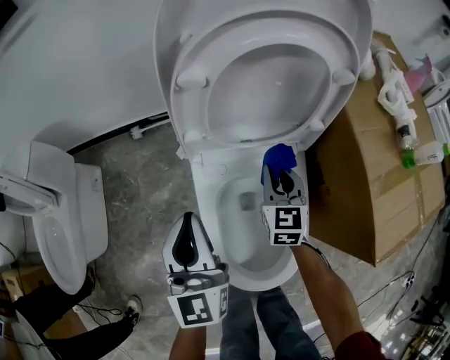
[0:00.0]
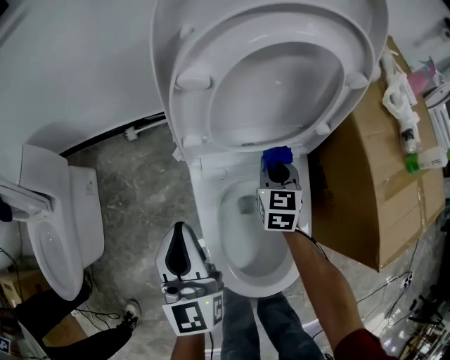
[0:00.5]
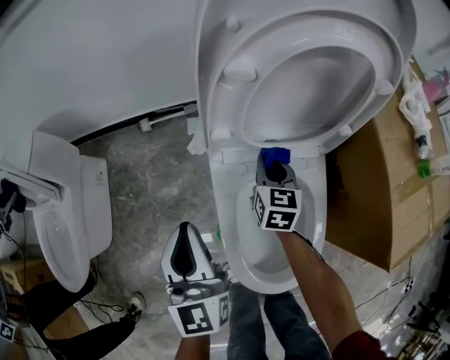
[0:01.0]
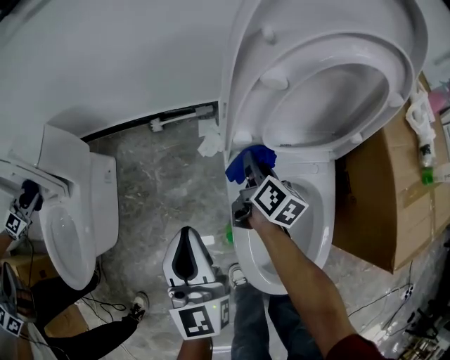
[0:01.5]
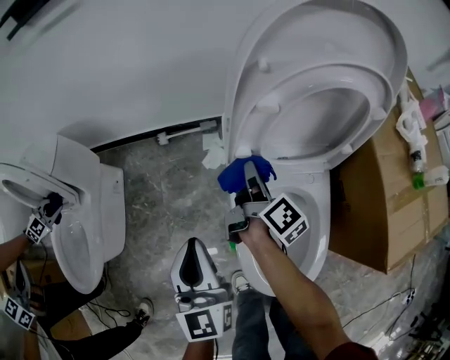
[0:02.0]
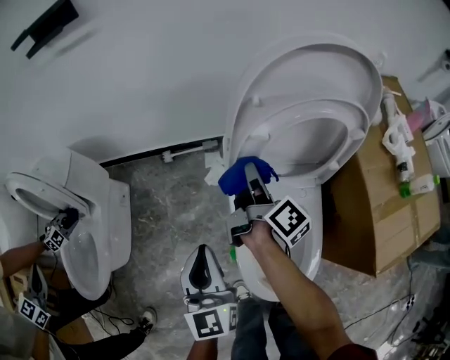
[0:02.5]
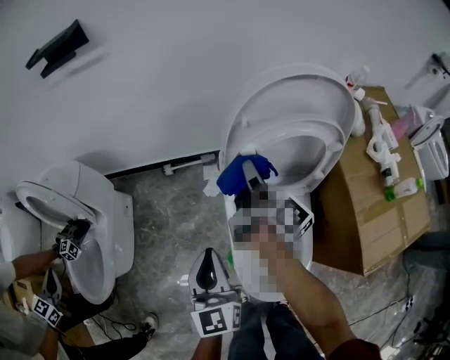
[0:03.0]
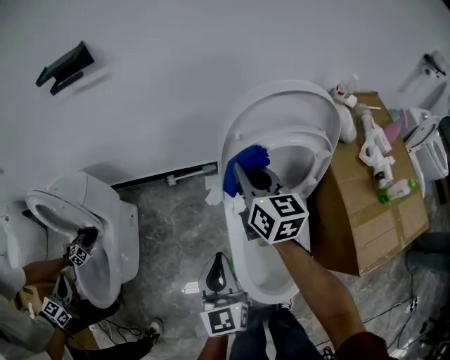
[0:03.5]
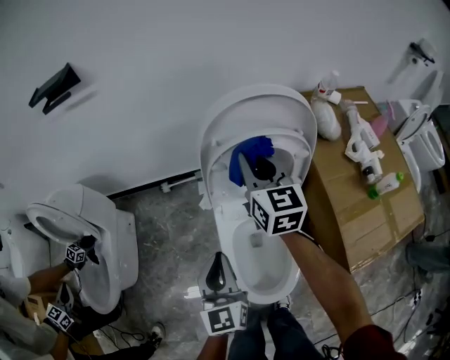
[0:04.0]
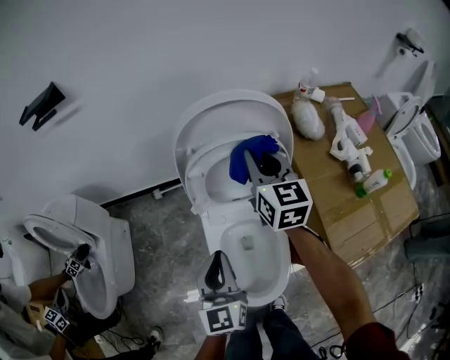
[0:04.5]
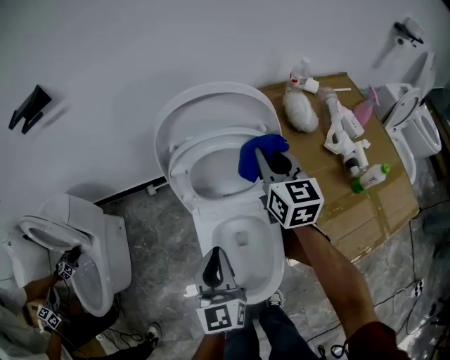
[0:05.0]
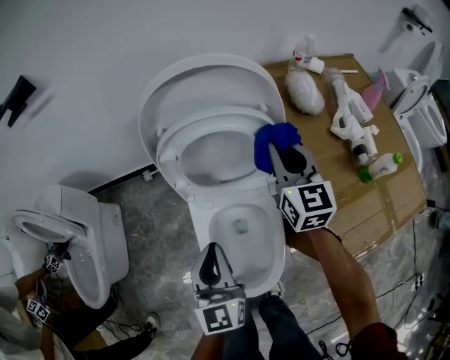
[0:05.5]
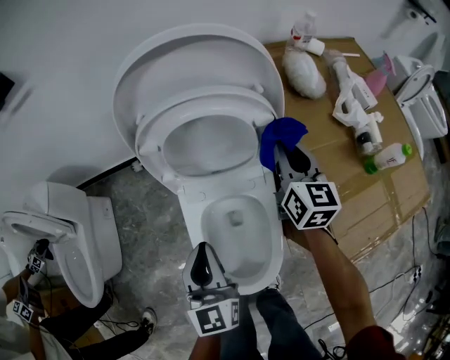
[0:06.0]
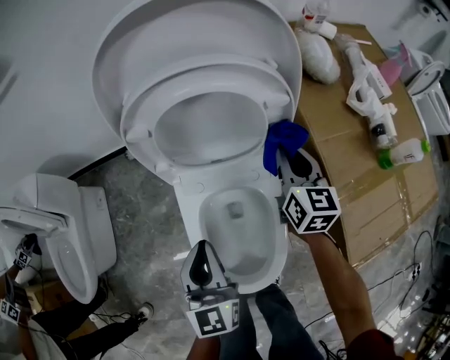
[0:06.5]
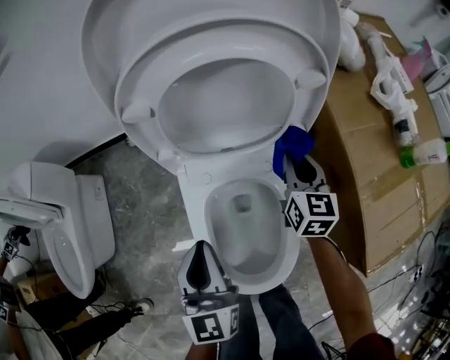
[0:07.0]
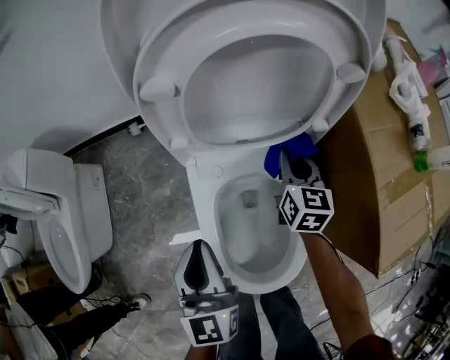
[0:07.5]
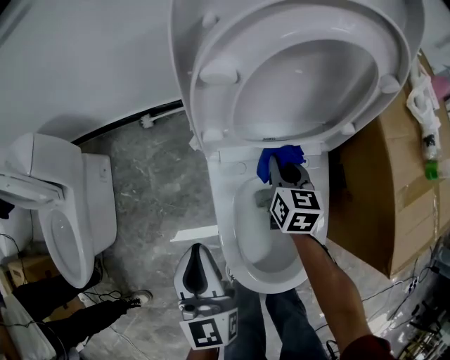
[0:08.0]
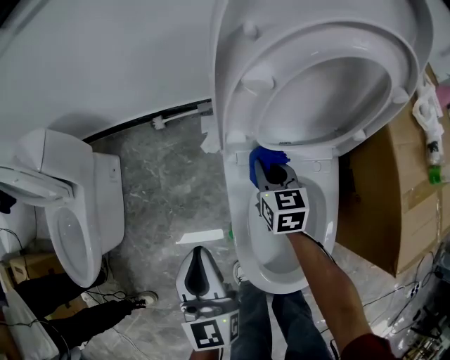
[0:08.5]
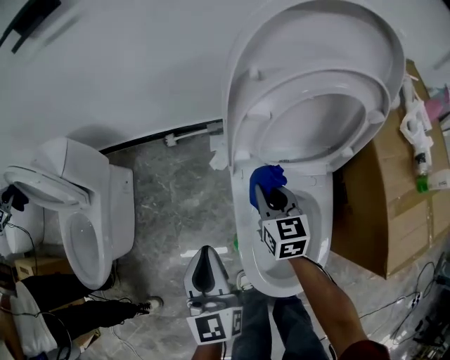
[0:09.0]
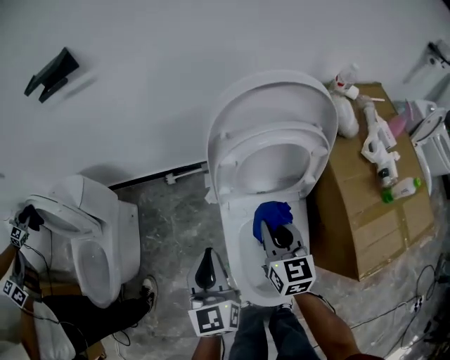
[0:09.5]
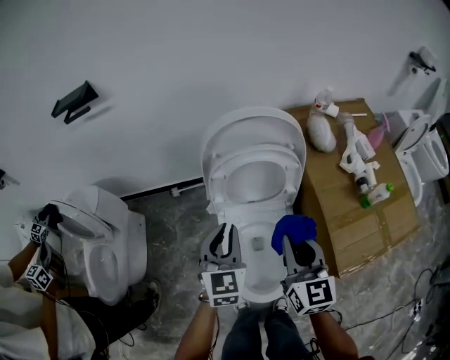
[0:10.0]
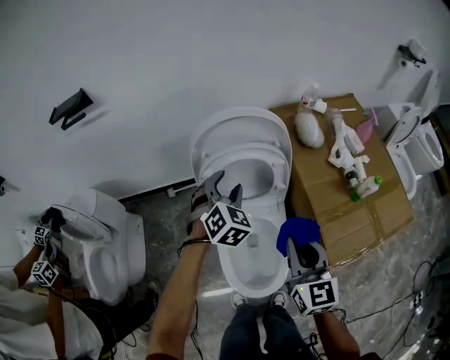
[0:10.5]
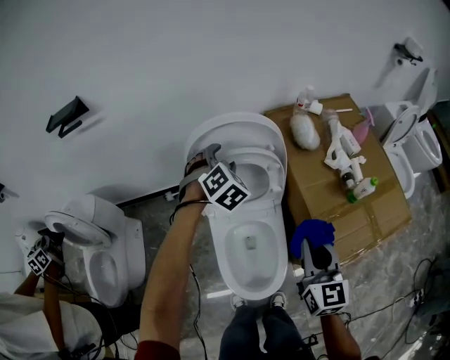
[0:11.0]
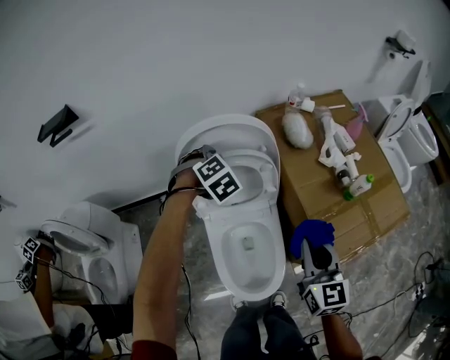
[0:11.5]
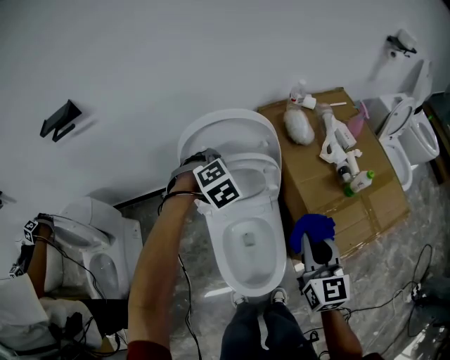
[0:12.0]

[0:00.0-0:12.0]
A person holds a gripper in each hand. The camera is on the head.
0:00.0 to 0:02.0: Both grippers move to the left, about 15 cm. The right gripper rolls clockwise, seen from behind, by approximately 80 degrees.
0:02.0 to 0:04.0: The right gripper goes some 30 cm upward, and twists roughly 70 degrees counterclockwise, seen from behind. The left gripper moves upward and to the right, approximately 20 cm.
0:04.0 to 0:06.0: The left gripper is displaced to the right and downward by about 15 cm. Meanwhile the right gripper travels to the right and downward by approximately 30 cm.
0:06.0 to 0:08.0: The left gripper is displaced to the left and downward by some 20 cm, while the right gripper shifts about 30 cm downward and to the left.
0:08.0 to 0:10.0: The left gripper travels upward and to the right by about 25 cm, and changes its angle by about 30 degrees. Meanwhile the right gripper travels upward and backward by some 50 cm, and turns by about 20 degrees.
0:10.0 to 0:12.0: The left gripper shifts some 20 cm forward and to the right, rolls clockwise, seen from behind, by roughly 50 degrees, and opens, then closes once more; the right gripper heads to the right, covering approximately 10 cm.

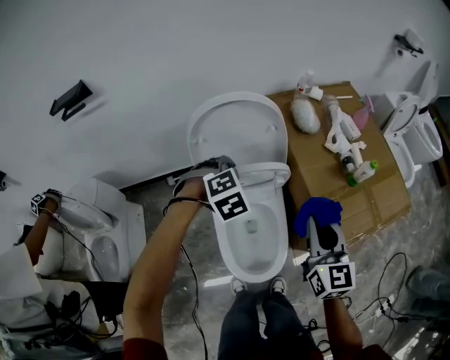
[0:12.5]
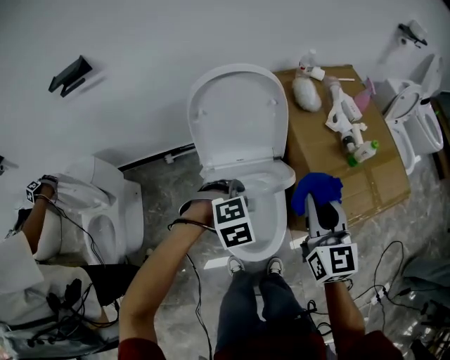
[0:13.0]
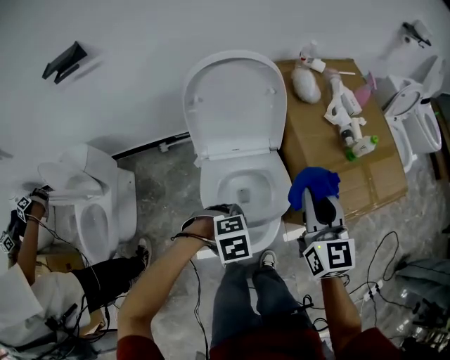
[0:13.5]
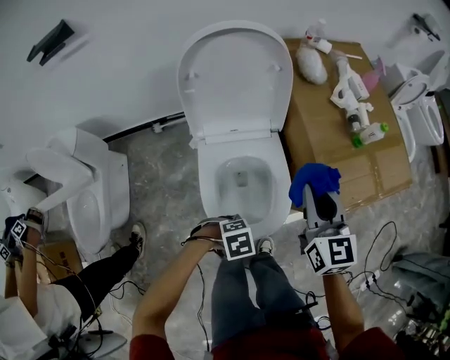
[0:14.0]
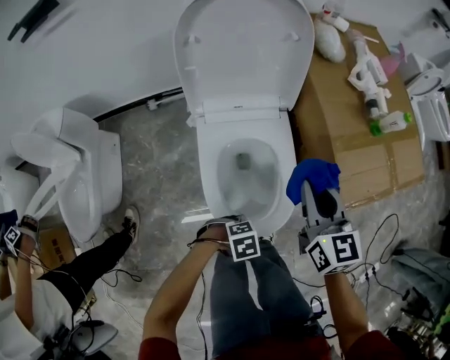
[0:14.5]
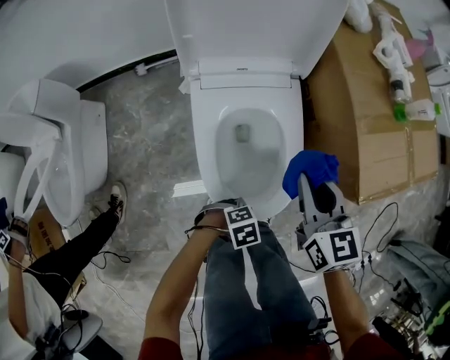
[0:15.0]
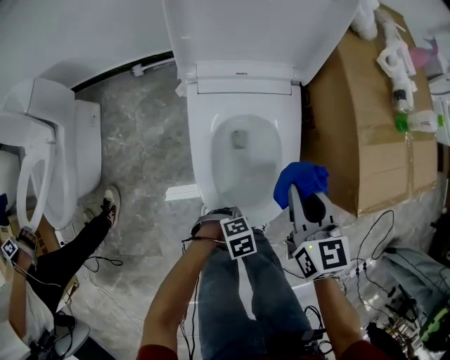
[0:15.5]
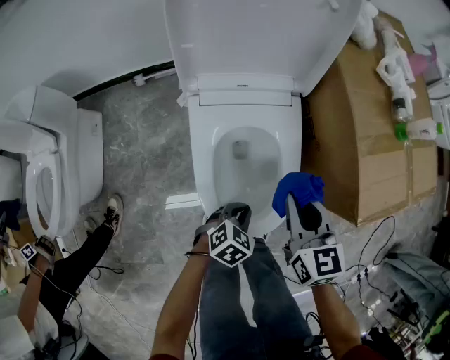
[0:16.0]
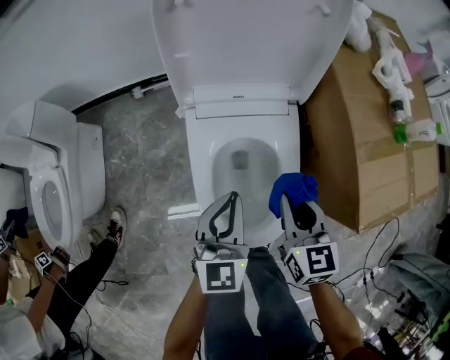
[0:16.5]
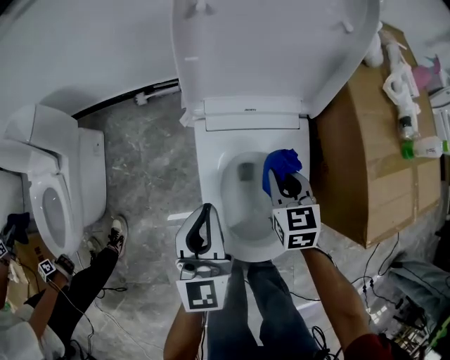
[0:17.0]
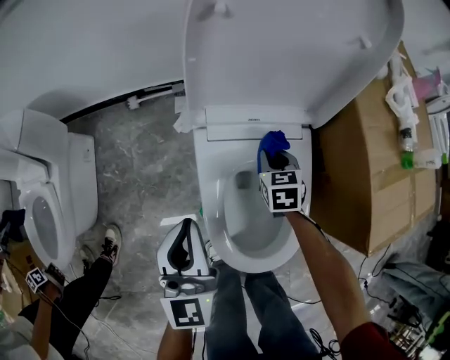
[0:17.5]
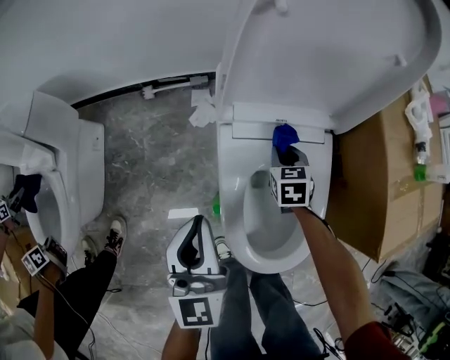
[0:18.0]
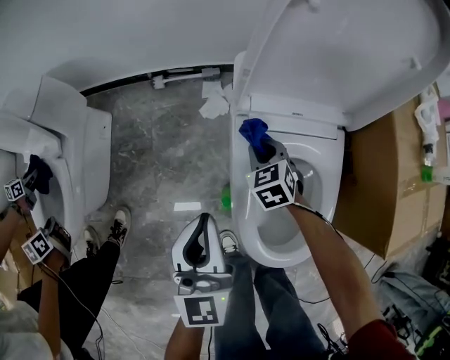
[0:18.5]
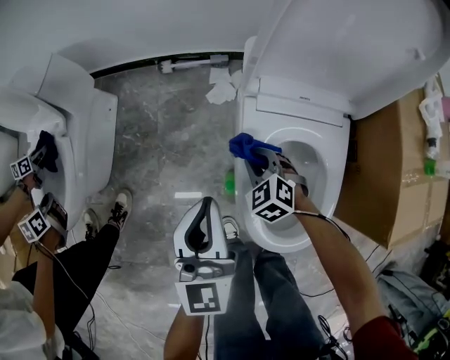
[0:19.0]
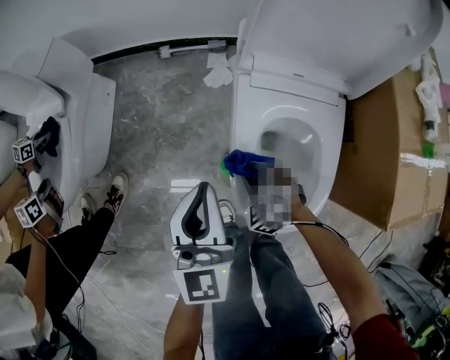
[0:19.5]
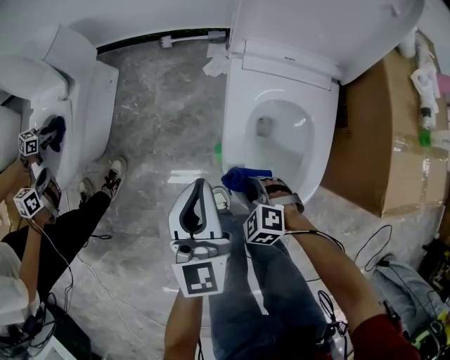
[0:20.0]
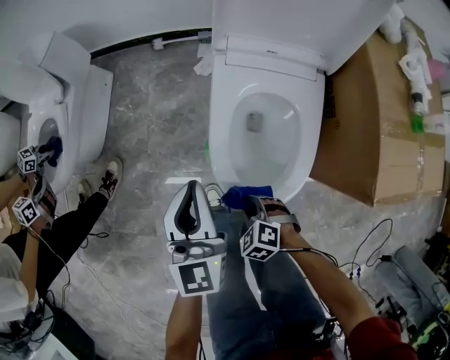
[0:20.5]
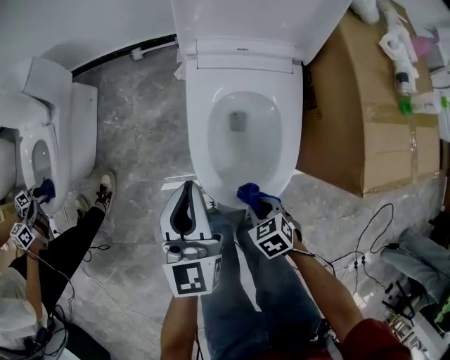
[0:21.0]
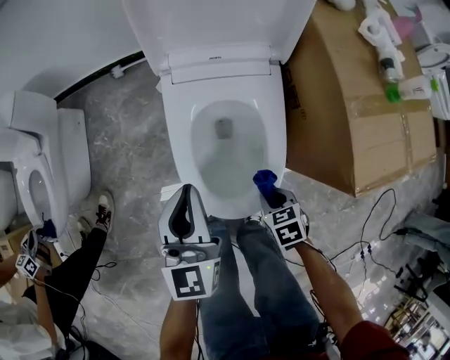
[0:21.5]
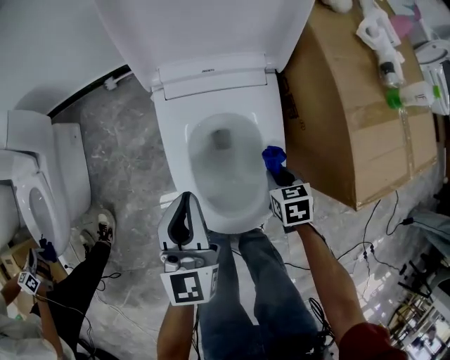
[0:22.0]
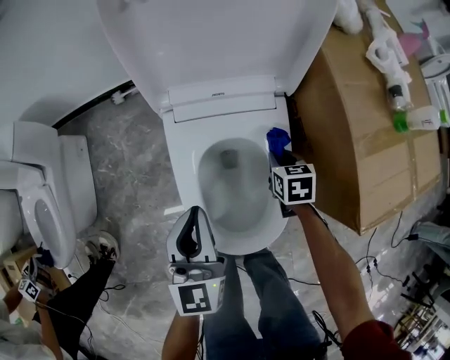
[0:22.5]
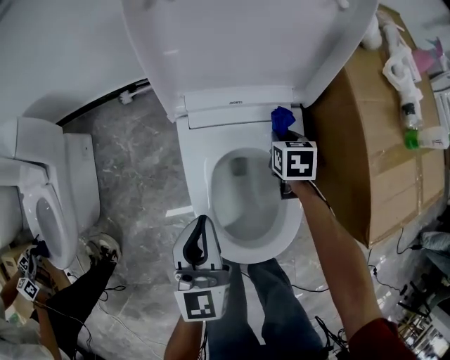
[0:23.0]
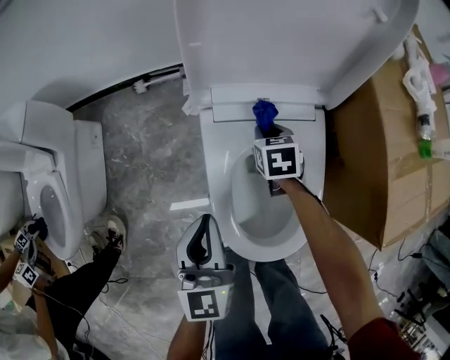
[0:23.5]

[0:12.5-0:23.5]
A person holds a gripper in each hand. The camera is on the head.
0:12.5 to 0:14.5: The right gripper shifts approximately 15 cm downward. The left gripper changes place by some 50 cm, and rotates roughly 50 degrees.
0:14.5 to 0:16.0: The right gripper goes roughly 15 cm downward, while the left gripper changes place by roughly 15 cm, rotates approximately 40 degrees, and closes up.
0:16.0 to 0:18.0: The left gripper moves roughly 35 cm, and points its fingers roughly 50 degrees further upward, while the right gripper moves approximately 30 cm, and turns by some 30 degrees.
0:18.0 to 0:20.0: The right gripper ends up about 35 cm from where it was, and rolls counterclockwise, seen from behind, by about 60 degrees. The left gripper moves some 15 cm.
0:20.0 to 0:21.5: The right gripper goes approximately 20 cm to the right and backward, and rotates around the line of its fingers by approximately 60 degrees, clockwise from behind, while the left gripper goes some 15 cm to the right.
0:21.5 to 0:23.5: The right gripper goes roughly 35 cm forward; the left gripper heads forward, to the left and downward, covering about 10 cm.

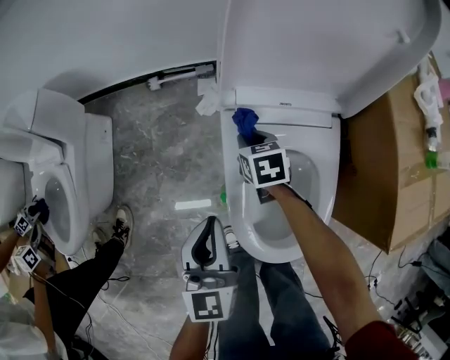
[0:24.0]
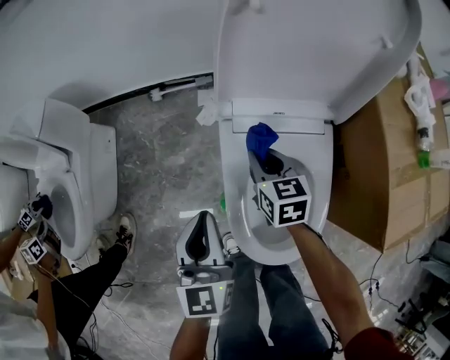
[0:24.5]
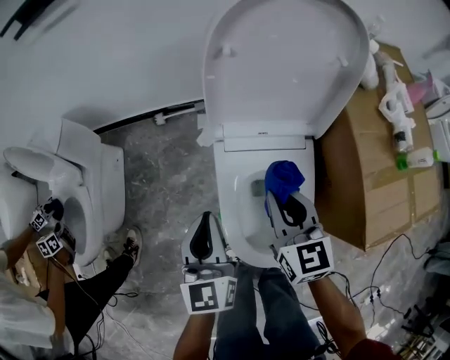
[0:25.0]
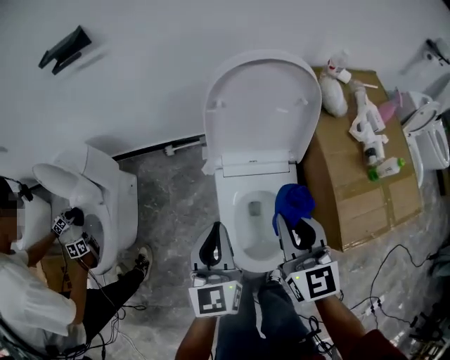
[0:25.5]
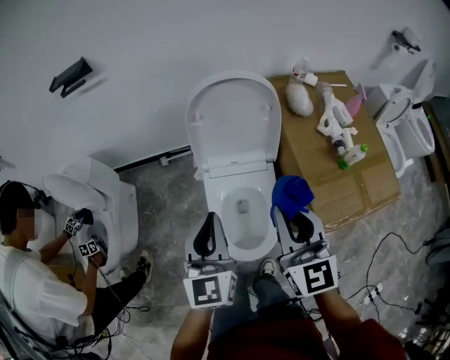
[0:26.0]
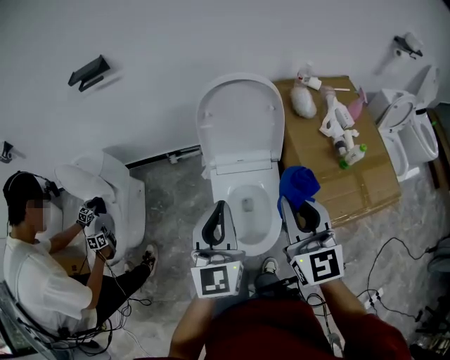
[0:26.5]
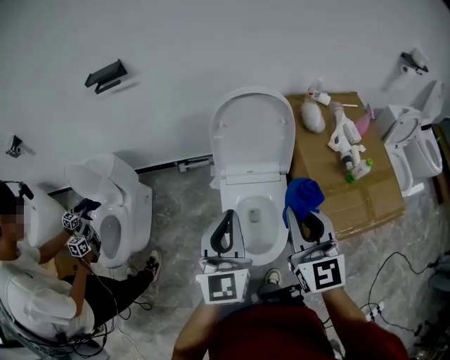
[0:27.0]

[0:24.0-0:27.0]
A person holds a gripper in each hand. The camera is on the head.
0:24.0 to 0:25.5: The left gripper moves upward, about 25 cm, while the right gripper shifts approximately 50 cm upward and backward, and points its fingers some 40 degrees further upward.
0:25.5 to 0:27.0: Both grippers travel together upward and backward, some 20 cm.
